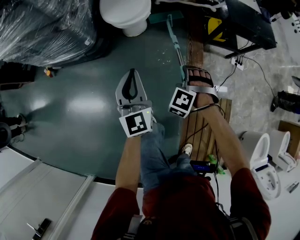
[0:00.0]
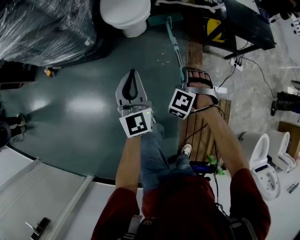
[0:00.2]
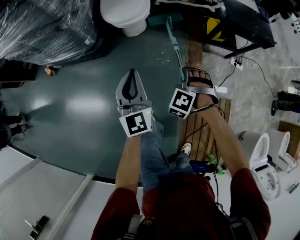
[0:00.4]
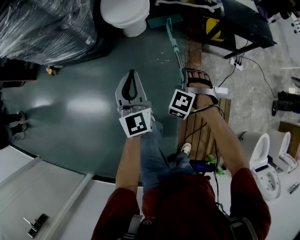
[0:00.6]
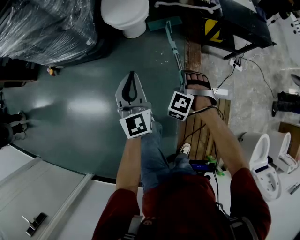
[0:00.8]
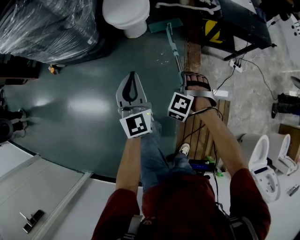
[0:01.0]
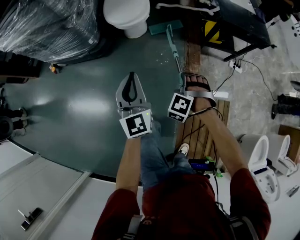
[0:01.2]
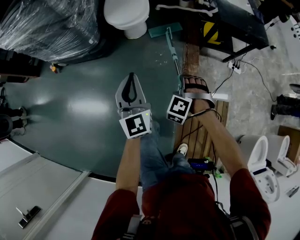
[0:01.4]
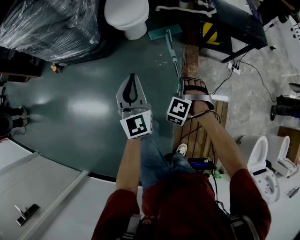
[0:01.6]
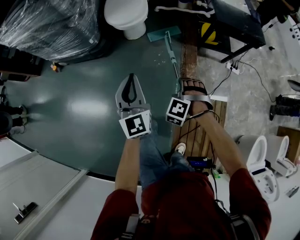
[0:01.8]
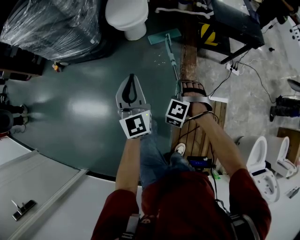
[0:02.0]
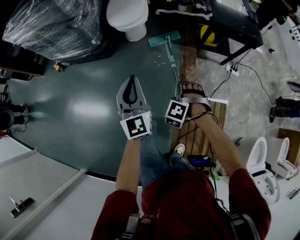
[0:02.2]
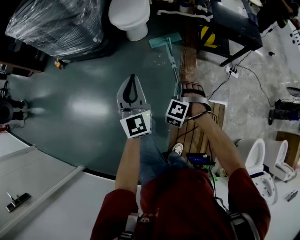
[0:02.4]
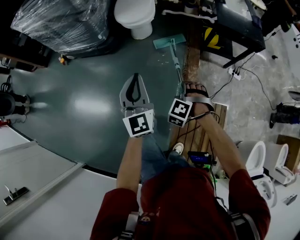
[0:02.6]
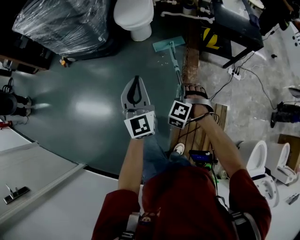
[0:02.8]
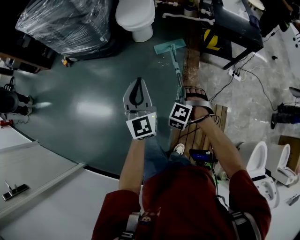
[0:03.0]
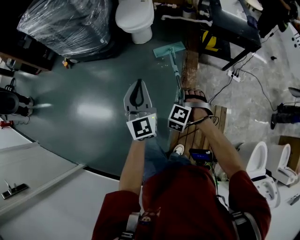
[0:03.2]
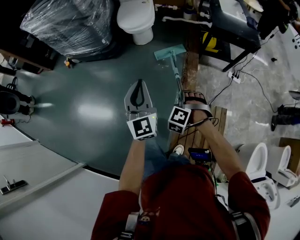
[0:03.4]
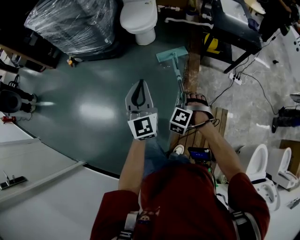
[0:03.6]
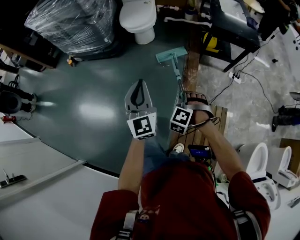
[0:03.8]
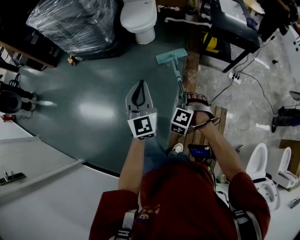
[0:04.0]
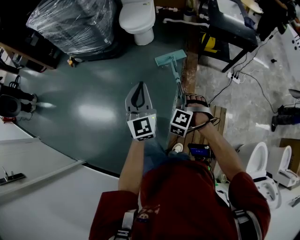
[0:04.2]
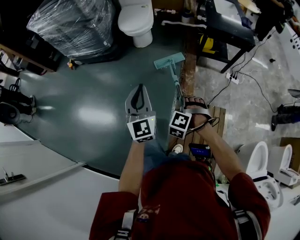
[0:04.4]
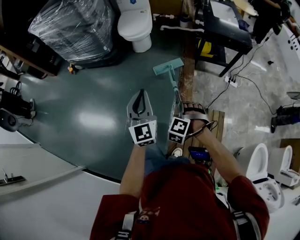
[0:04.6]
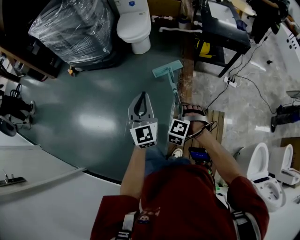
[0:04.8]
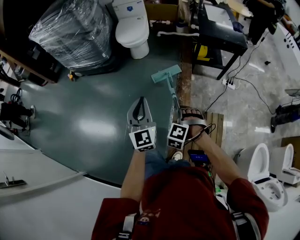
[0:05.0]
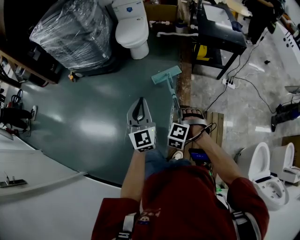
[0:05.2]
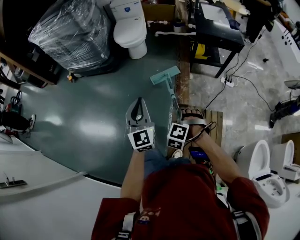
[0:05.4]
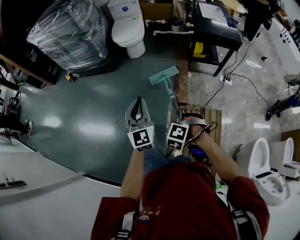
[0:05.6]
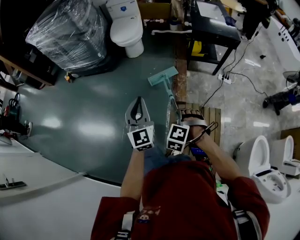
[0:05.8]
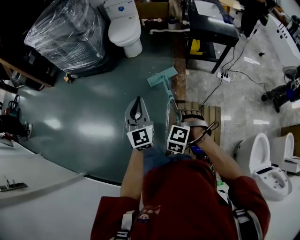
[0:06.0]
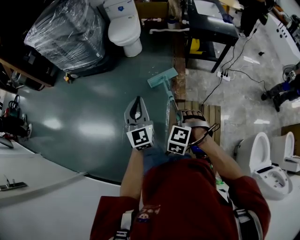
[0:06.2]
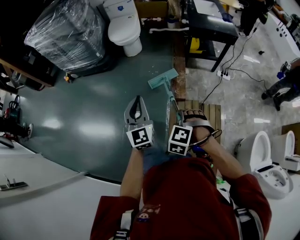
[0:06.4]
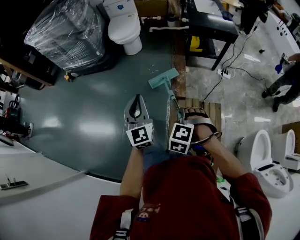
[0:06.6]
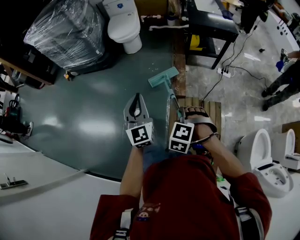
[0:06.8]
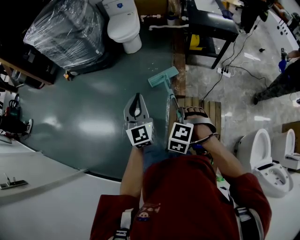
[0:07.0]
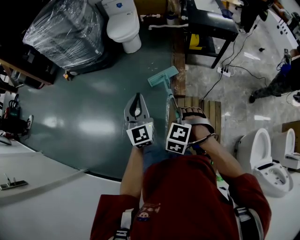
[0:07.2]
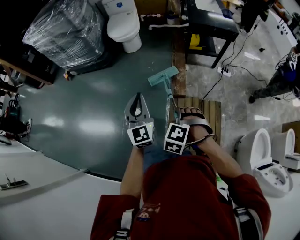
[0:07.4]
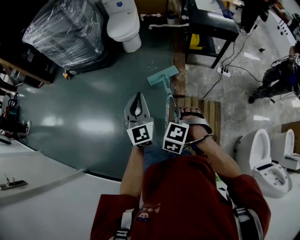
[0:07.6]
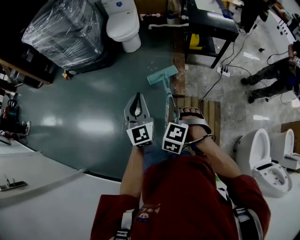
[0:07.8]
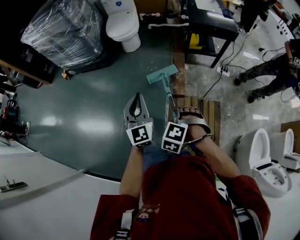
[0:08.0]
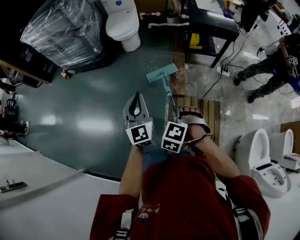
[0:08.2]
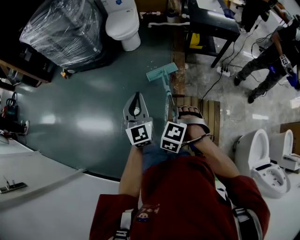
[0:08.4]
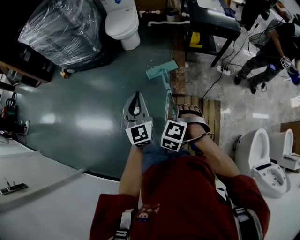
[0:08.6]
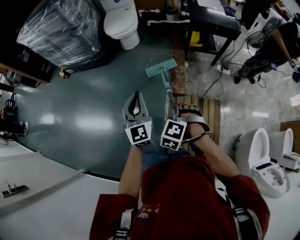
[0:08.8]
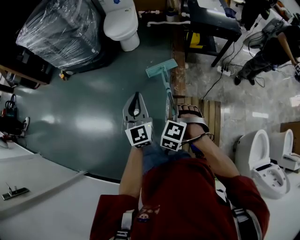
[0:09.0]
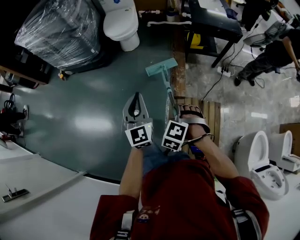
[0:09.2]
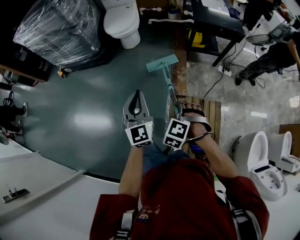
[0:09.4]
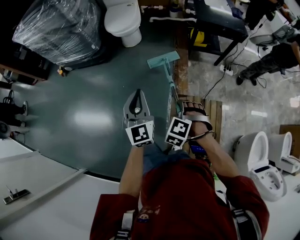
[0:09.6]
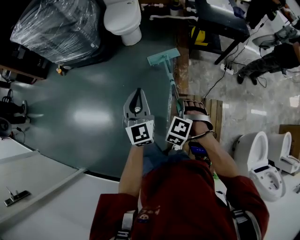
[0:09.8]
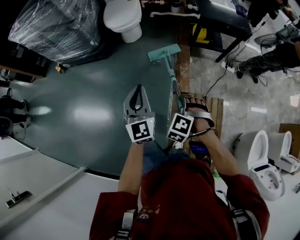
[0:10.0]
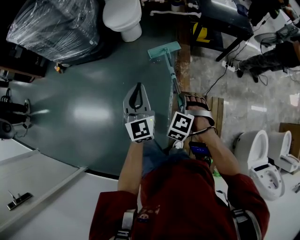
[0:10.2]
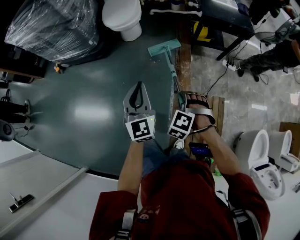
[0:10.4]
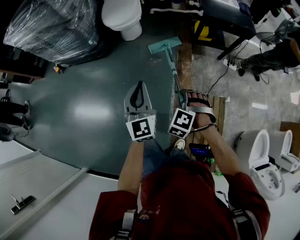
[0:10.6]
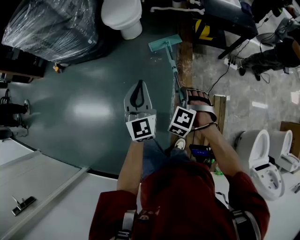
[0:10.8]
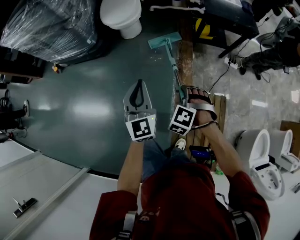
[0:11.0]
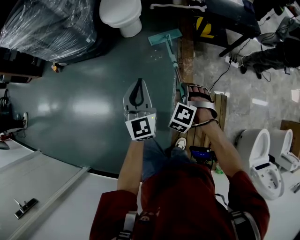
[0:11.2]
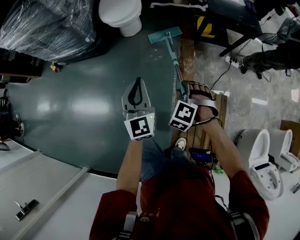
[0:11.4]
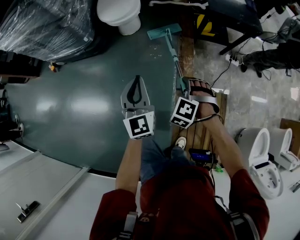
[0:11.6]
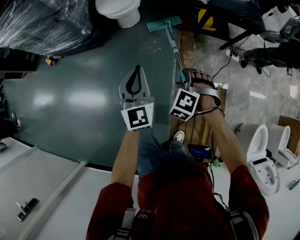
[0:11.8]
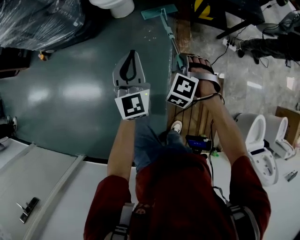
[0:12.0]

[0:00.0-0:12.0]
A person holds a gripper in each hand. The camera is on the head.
0:00.0 to 0:01.6: The left gripper shifts by about 15 cm.
0:01.6 to 0:03.0: The left gripper ends up some 15 cm from where it was.
0:03.0 to 0:04.4: The left gripper ends up some 10 cm from where it was.
0:04.4 to 0:06.0: The left gripper ends up roughly 10 cm from where it was.
0:07.6 to 0:09.0: The left gripper shifts by approximately 5 cm.
0:09.0 to 0:10.4: The left gripper ends up some 15 cm from where it was.
0:10.4 to 0:12.0: The left gripper ends up about 15 cm from where it was.

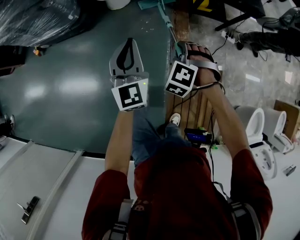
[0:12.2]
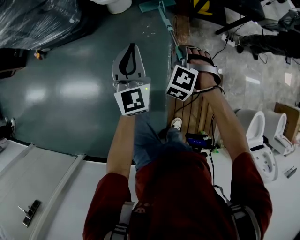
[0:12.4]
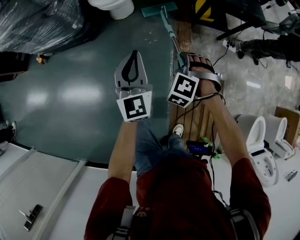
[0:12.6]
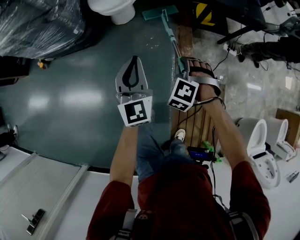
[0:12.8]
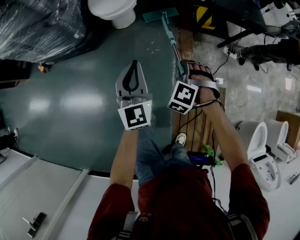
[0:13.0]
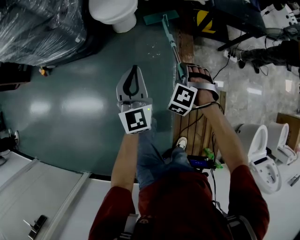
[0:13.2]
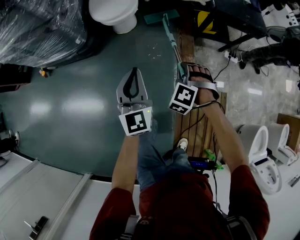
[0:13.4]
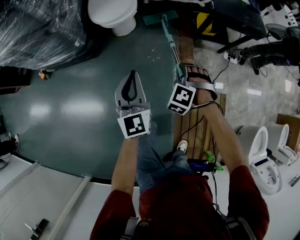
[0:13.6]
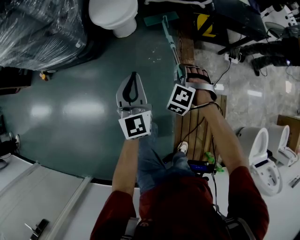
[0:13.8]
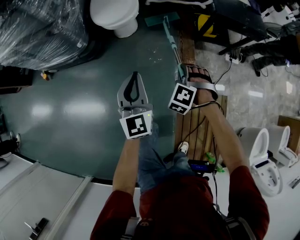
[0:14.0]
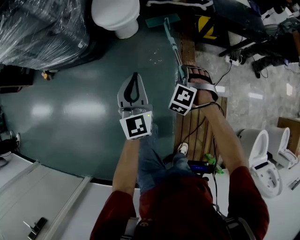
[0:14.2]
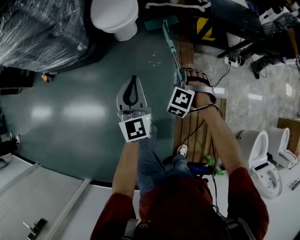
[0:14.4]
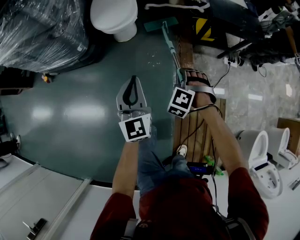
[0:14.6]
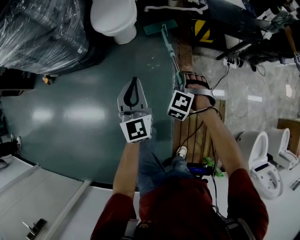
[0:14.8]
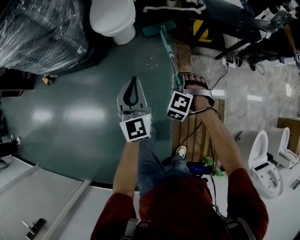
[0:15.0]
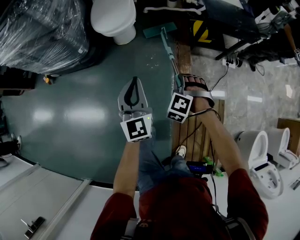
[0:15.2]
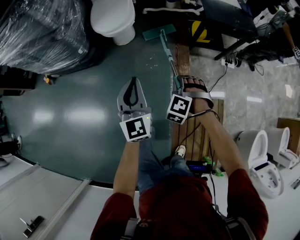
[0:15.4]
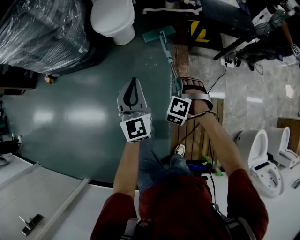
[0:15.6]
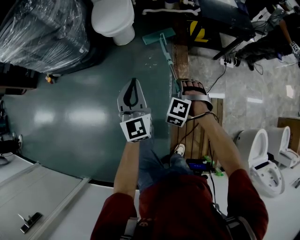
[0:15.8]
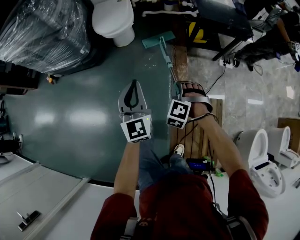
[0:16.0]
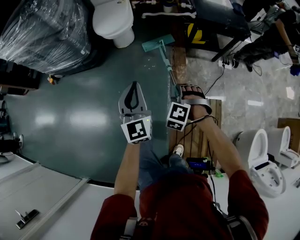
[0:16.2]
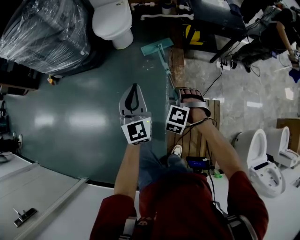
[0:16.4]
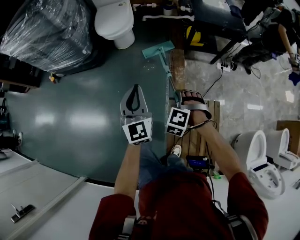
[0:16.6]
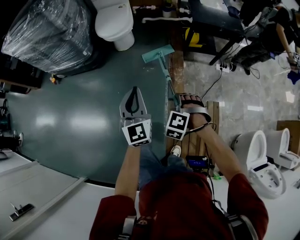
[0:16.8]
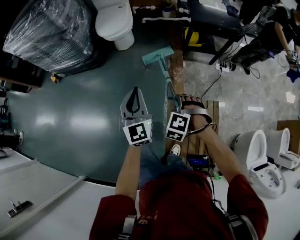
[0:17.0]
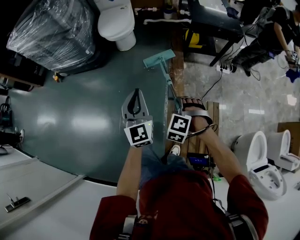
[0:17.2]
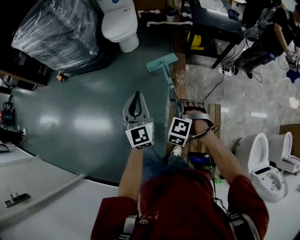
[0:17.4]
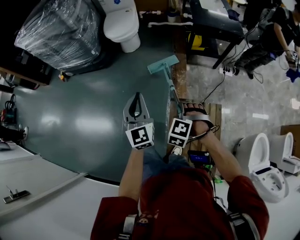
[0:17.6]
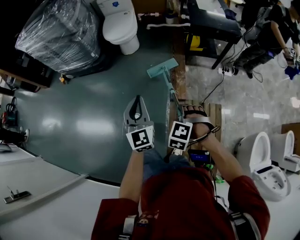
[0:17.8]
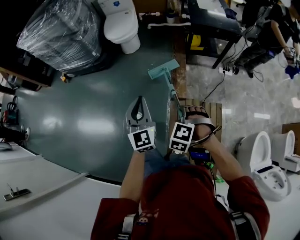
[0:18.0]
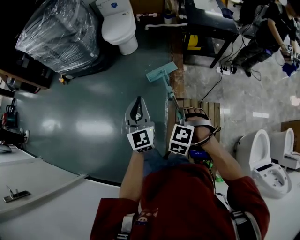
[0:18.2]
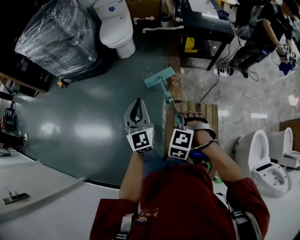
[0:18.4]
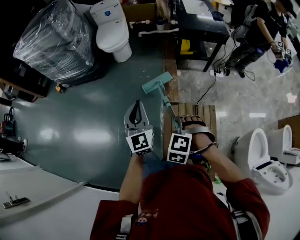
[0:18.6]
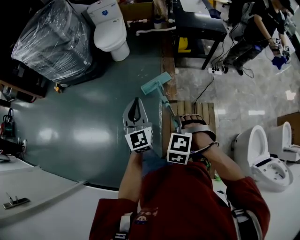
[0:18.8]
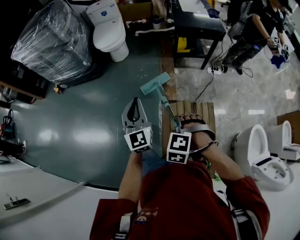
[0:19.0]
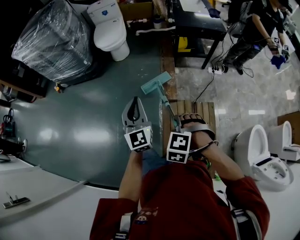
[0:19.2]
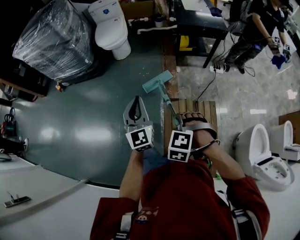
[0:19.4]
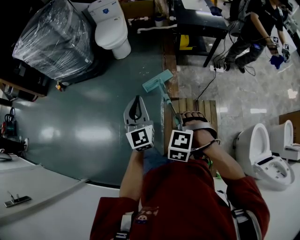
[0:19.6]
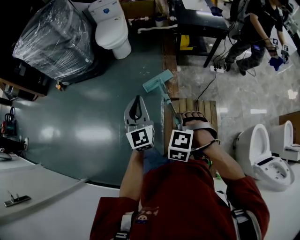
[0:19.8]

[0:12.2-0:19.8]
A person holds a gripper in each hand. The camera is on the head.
0:12.2 to 0:13.8: The left gripper shifts by roughly 10 cm.
0:13.8 to 0:15.2: The left gripper changes place by roughly 5 cm.
0:15.2 to 0:16.8: The left gripper moves about 20 cm.
0:16.8 to 0:18.2: The left gripper changes place by some 15 cm.

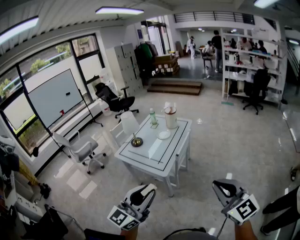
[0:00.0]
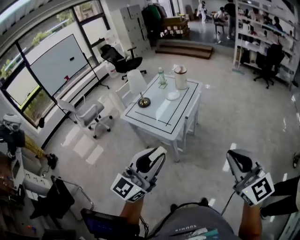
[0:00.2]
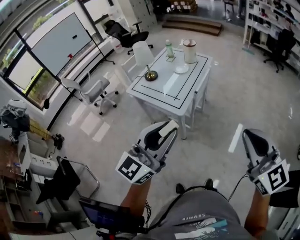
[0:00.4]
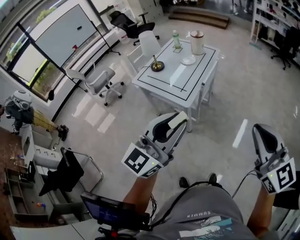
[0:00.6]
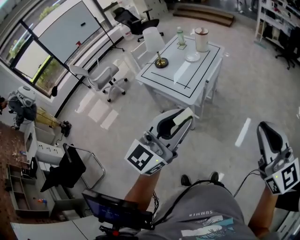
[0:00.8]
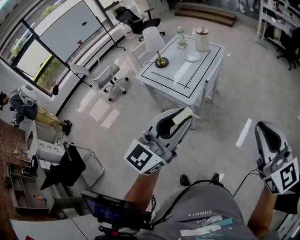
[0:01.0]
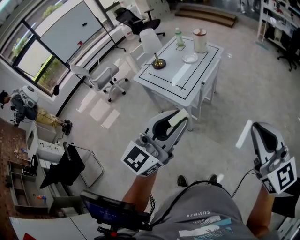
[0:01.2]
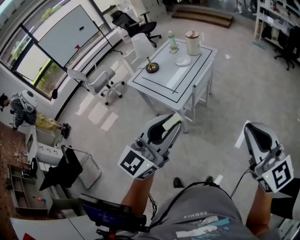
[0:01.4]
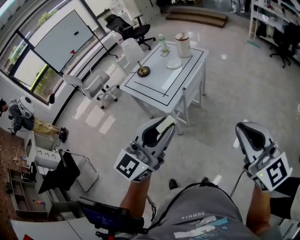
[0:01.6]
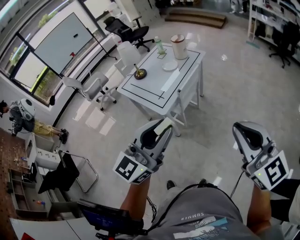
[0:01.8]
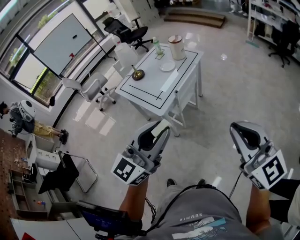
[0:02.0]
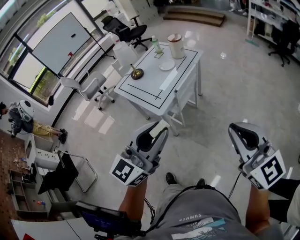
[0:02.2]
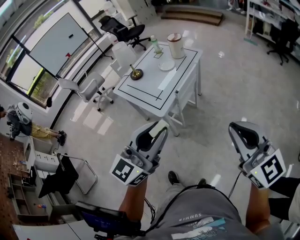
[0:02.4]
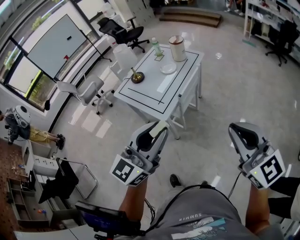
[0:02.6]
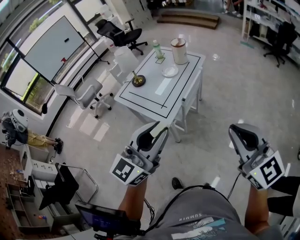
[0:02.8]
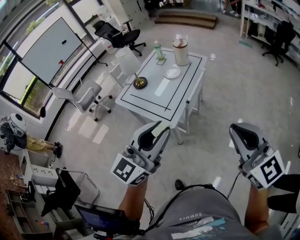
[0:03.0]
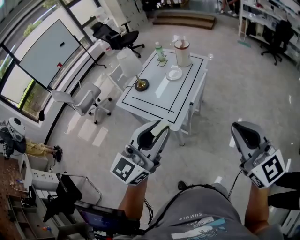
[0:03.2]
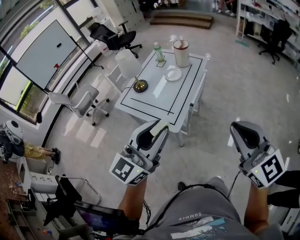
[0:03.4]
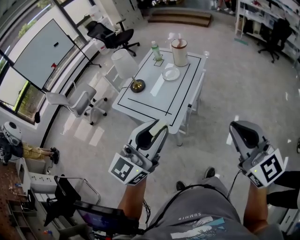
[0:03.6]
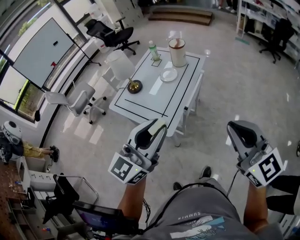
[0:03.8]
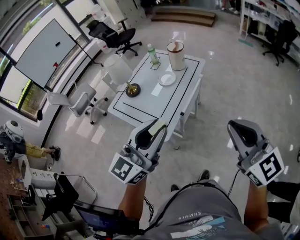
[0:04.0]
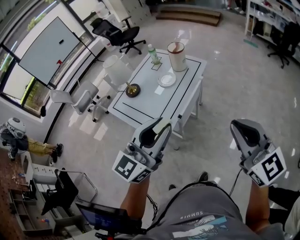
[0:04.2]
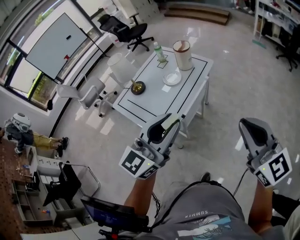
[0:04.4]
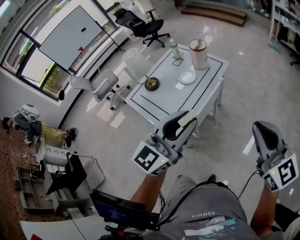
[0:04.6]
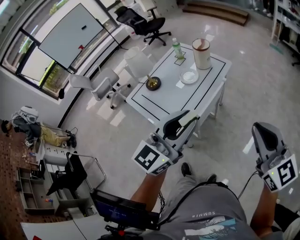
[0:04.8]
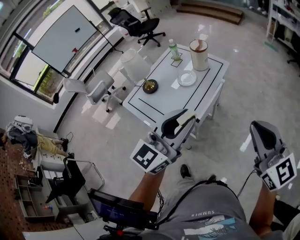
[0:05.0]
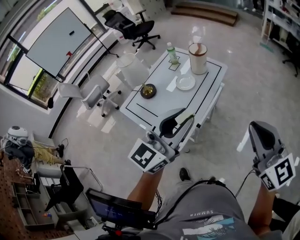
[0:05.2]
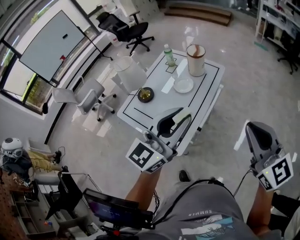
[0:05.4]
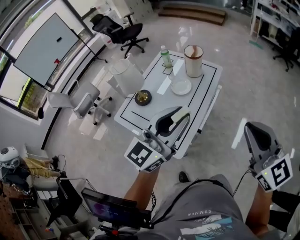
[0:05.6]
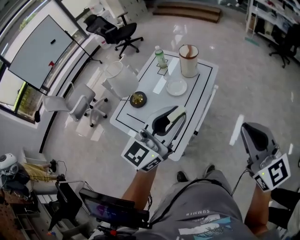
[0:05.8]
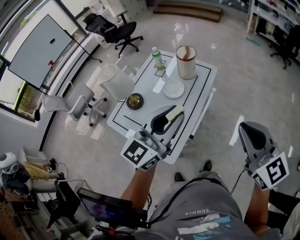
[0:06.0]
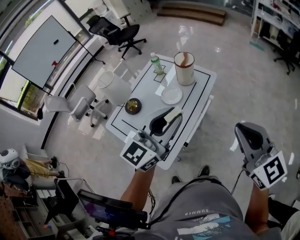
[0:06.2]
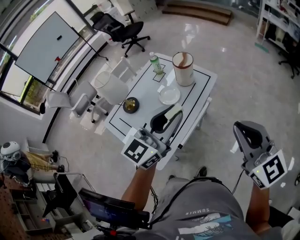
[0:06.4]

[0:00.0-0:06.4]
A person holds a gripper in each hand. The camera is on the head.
0:00.0 to 0:01.6: The right gripper is displaced forward and to the right by about 15 cm. The left gripper is displaced to the right and forward by roughly 20 cm.
0:01.6 to 0:03.2: The two grippers go some 15 cm forward and to the left.
0:03.2 to 0:04.8: Both grippers travel together forward and to the right, some 20 cm.
0:04.8 to 0:06.4: Both grippers travel together forward, roughly 20 cm.
